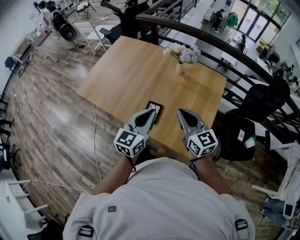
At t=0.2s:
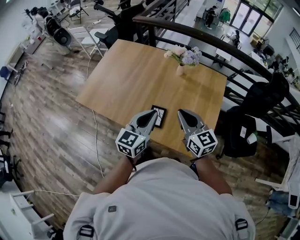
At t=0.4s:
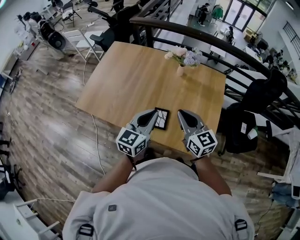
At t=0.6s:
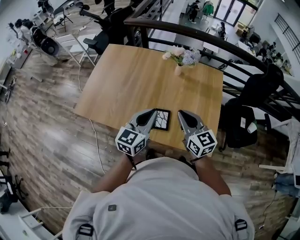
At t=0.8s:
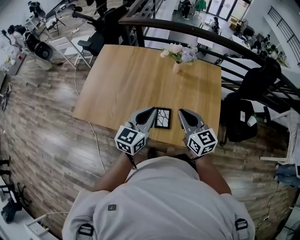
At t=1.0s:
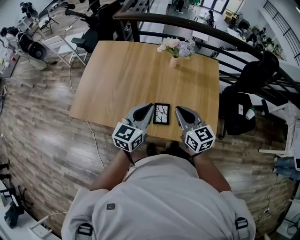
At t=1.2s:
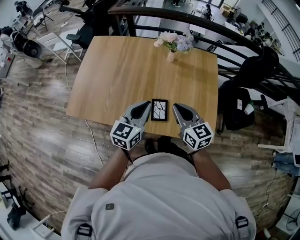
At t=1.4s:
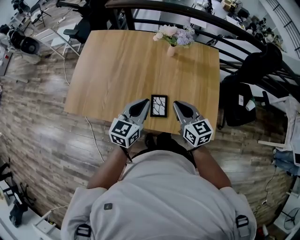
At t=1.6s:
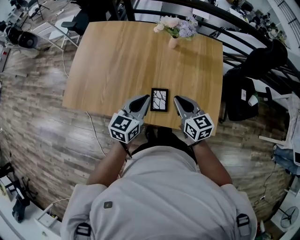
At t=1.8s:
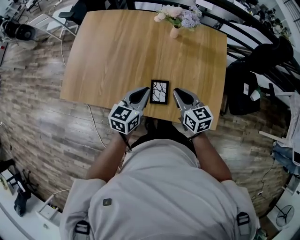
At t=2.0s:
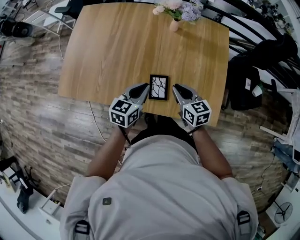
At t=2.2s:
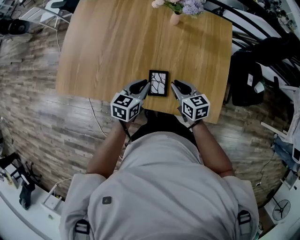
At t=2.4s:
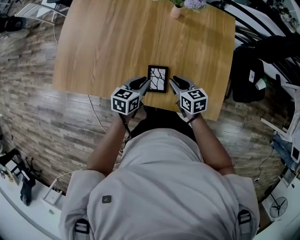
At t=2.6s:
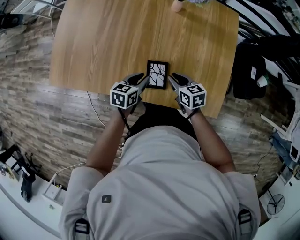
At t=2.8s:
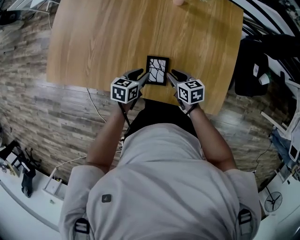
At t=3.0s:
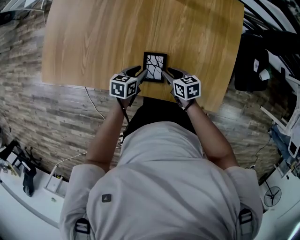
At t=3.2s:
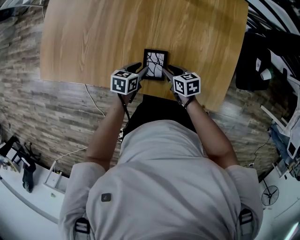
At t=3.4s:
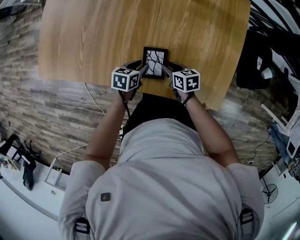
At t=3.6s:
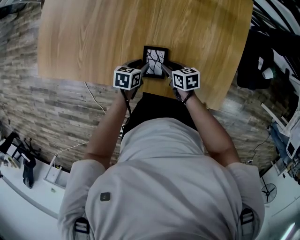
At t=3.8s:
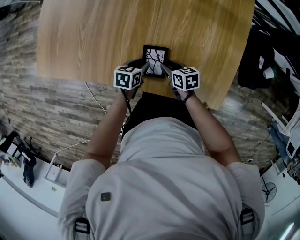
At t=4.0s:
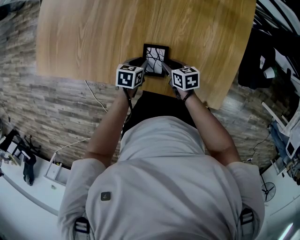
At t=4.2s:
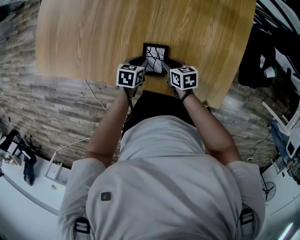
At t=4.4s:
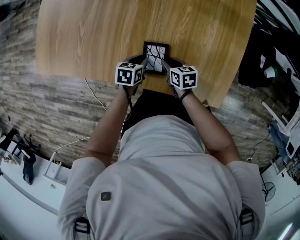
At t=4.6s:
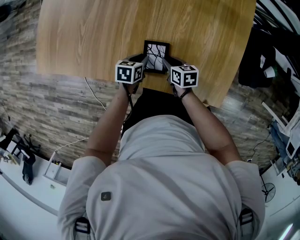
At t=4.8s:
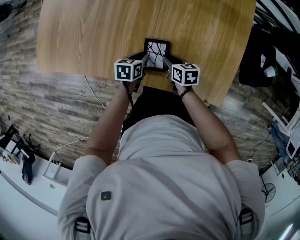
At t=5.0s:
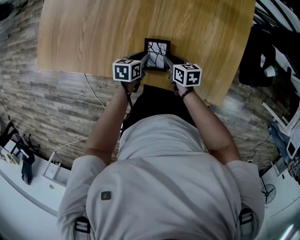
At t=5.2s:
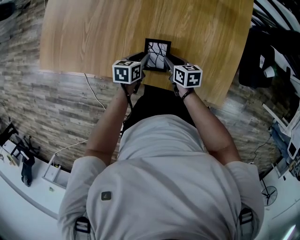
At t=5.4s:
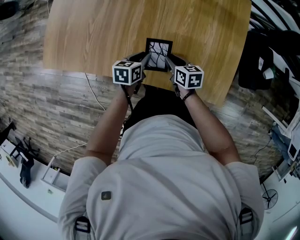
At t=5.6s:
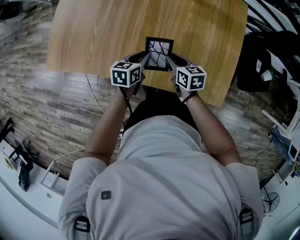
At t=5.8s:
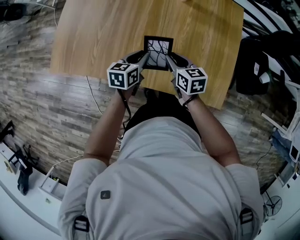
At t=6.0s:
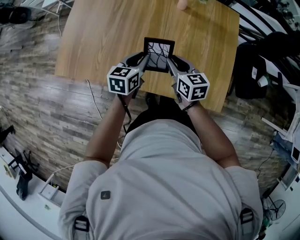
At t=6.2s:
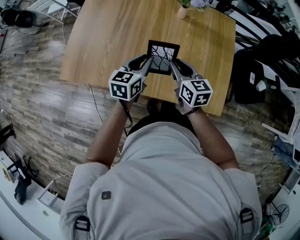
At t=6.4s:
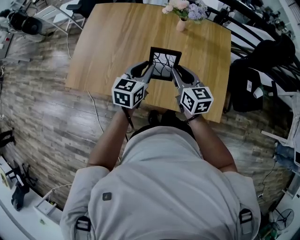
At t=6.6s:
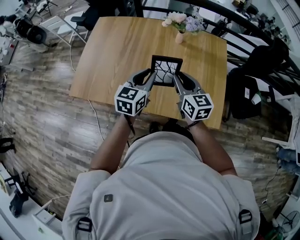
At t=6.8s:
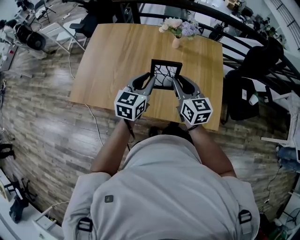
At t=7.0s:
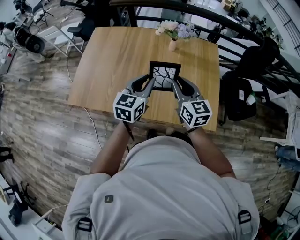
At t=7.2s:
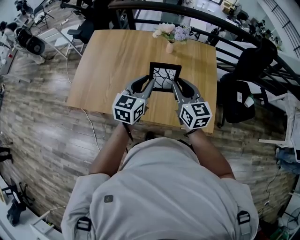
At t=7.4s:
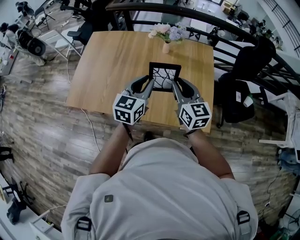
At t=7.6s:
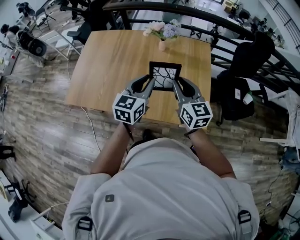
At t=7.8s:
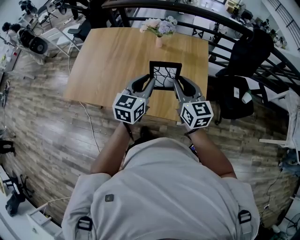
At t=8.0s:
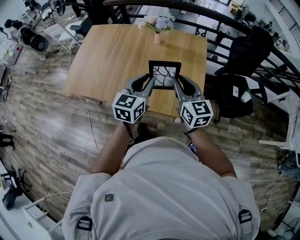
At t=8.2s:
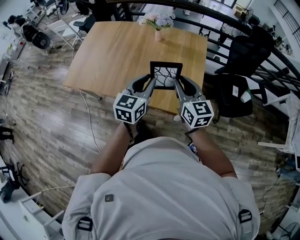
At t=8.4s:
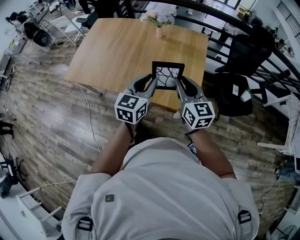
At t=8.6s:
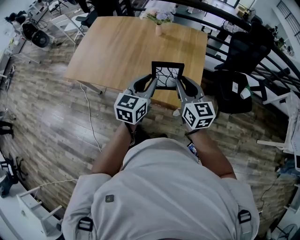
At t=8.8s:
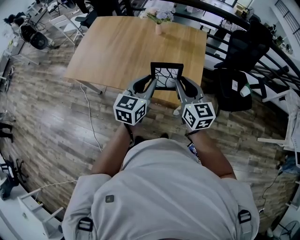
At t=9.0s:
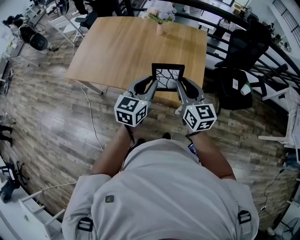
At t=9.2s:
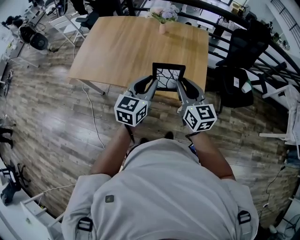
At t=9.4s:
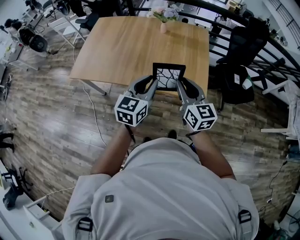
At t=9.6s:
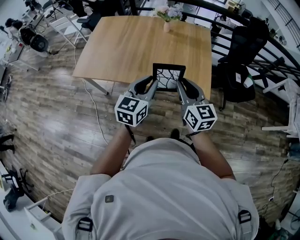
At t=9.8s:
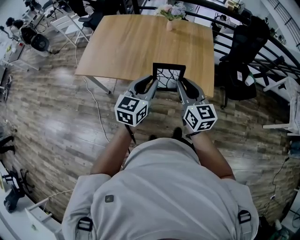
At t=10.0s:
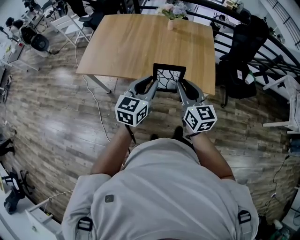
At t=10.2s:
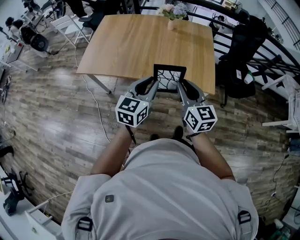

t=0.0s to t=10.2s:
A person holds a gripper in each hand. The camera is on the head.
t=0.0s to t=1.4s: The right gripper is displaced to the left and downward by about 15 cm, and turns by some 20 degrees, while the left gripper shifts some 15 cm to the left, forward and downward.
t=1.4s to t=3.0s: Both grippers move downward, roughly 30 cm. The left gripper turns by approximately 40 degrees, and opens up. The right gripper turns by some 40 degrees, and opens up.
t=3.0s to t=4.4s: The grippers both shift downward by approximately 5 cm.
t=4.4s to t=5.8s: Both grippers travel together upward, about 15 cm. The left gripper swivels some 20 degrees. Meanwhile the right gripper turns by some 20 degrees.
t=5.8s to t=7.2s: The grippers both shift upward by about 25 cm. The right gripper rotates about 30 degrees; the left gripper turns by some 30 degrees.
t=7.2s to t=8.8s: The grippers both shift backward and to the right by about 25 cm.
t=8.8s to t=10.2s: Both grippers move to the left and backward, approximately 20 cm.

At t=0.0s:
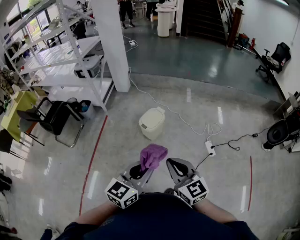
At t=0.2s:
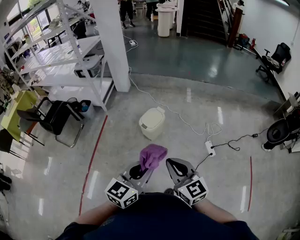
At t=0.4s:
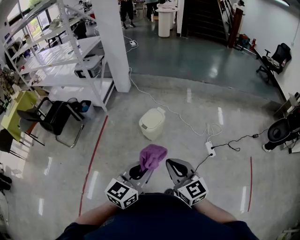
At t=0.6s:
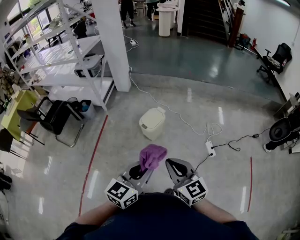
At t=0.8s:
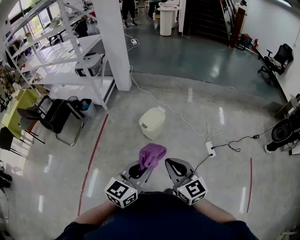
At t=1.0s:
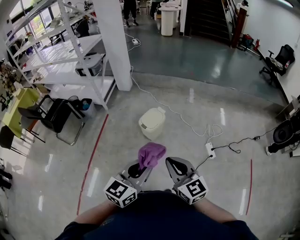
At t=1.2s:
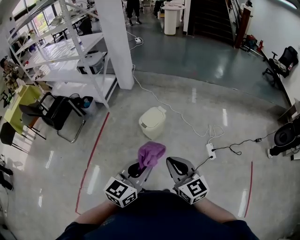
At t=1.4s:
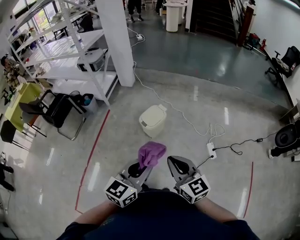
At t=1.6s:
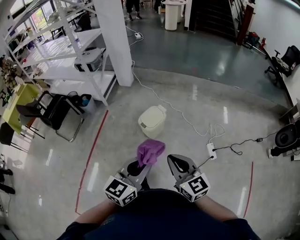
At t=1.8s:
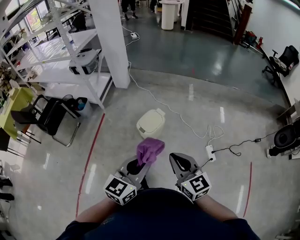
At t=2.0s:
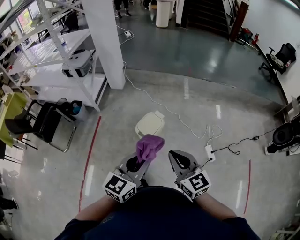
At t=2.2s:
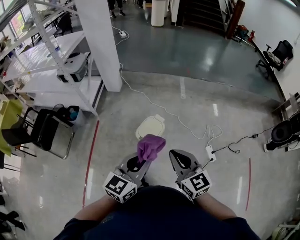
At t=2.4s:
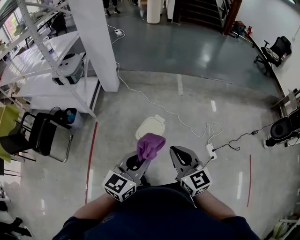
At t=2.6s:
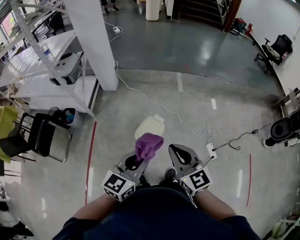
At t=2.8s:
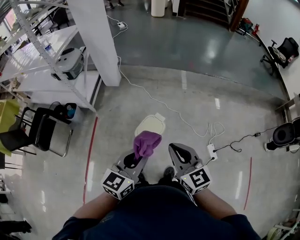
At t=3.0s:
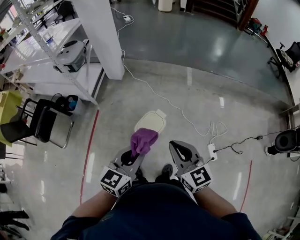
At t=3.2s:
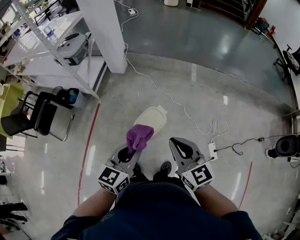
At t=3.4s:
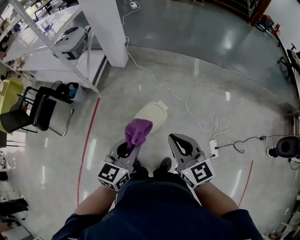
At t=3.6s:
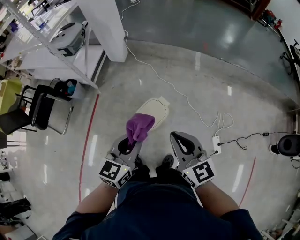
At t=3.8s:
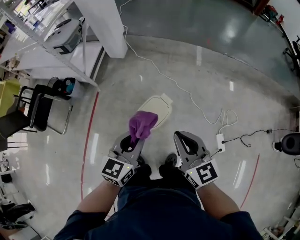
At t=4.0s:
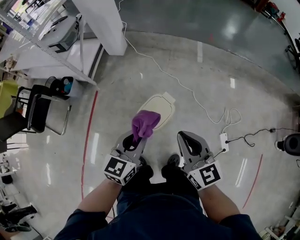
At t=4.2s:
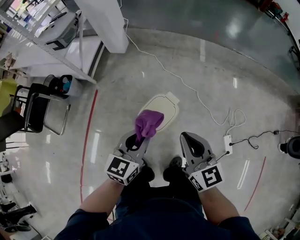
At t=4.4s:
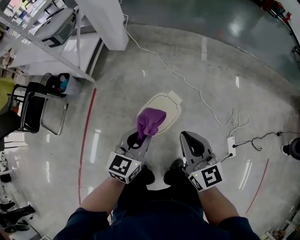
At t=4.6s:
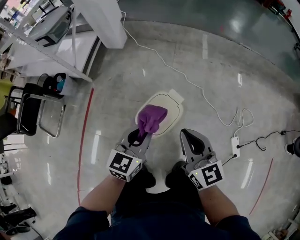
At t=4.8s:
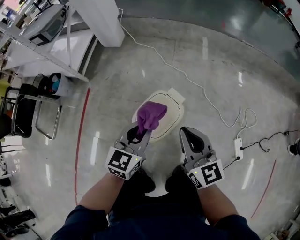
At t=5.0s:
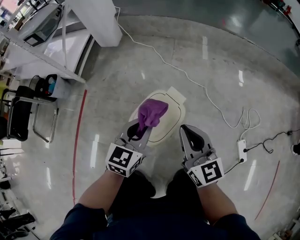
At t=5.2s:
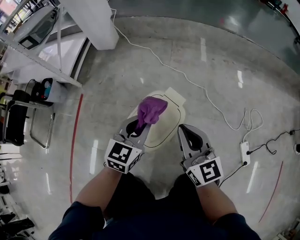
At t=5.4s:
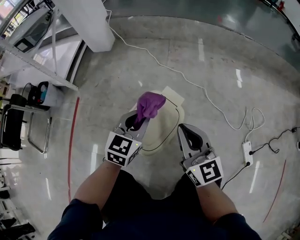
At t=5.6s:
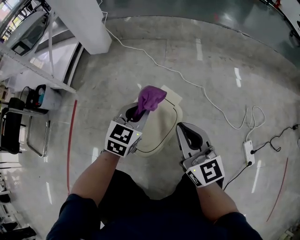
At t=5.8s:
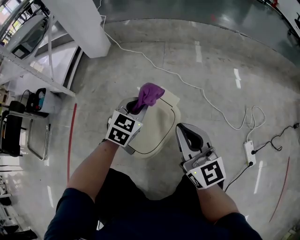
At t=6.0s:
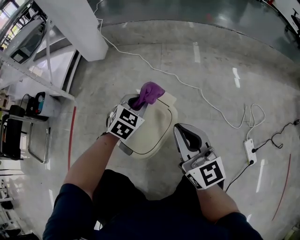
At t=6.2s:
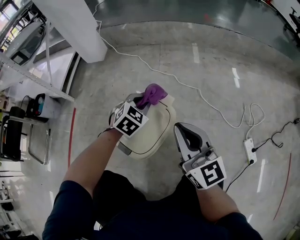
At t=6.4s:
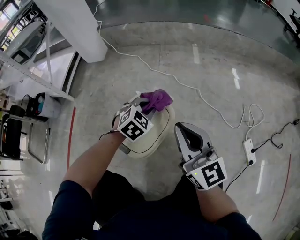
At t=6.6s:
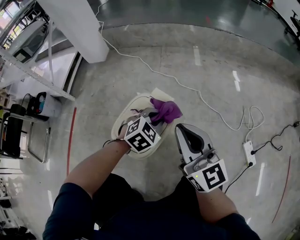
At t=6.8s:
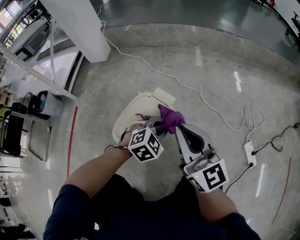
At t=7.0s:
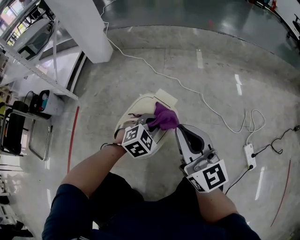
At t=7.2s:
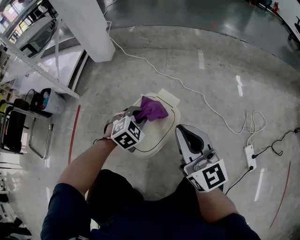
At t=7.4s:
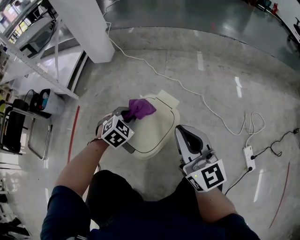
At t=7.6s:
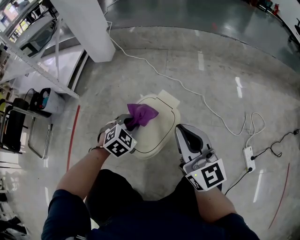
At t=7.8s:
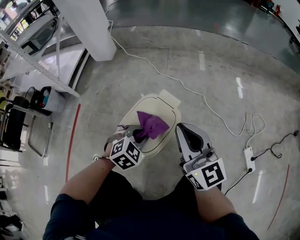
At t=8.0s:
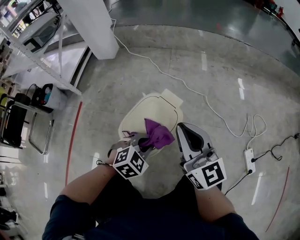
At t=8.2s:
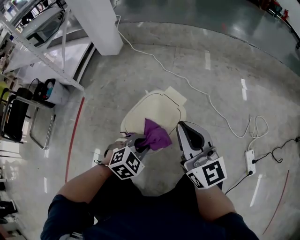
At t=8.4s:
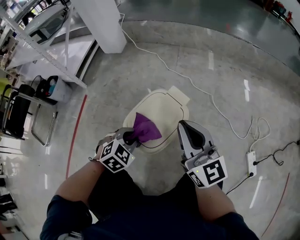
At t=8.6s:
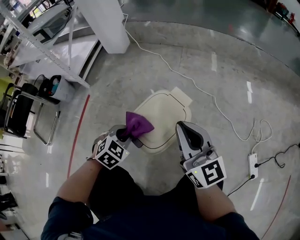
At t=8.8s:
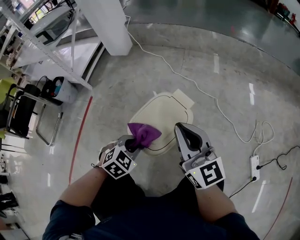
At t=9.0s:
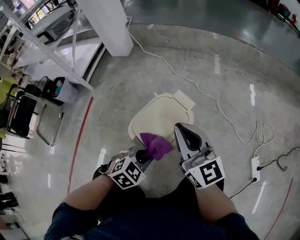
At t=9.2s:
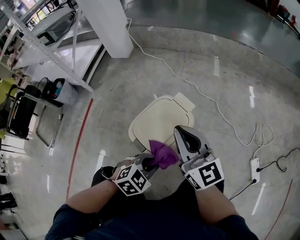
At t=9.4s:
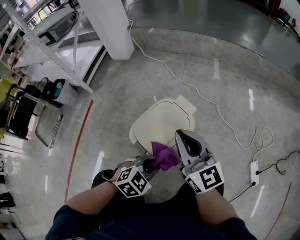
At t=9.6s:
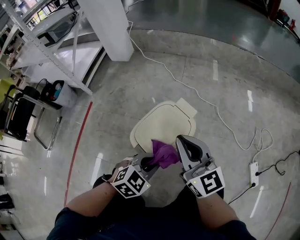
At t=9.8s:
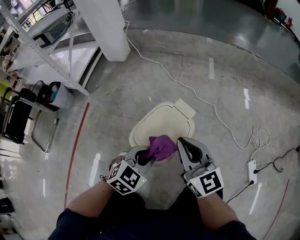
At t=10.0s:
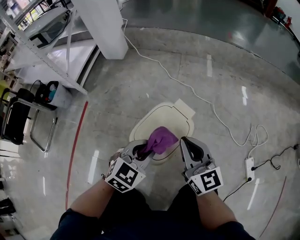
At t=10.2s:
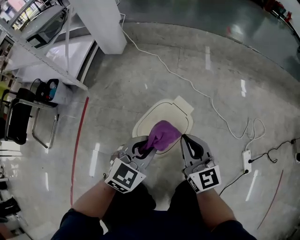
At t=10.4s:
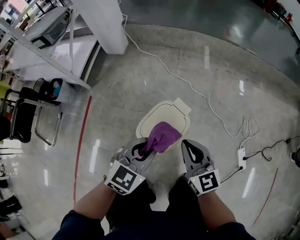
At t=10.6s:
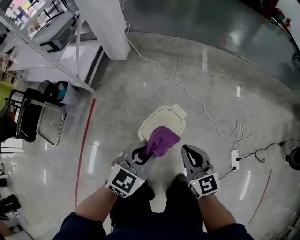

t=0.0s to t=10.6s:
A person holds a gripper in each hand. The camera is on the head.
t=0.0s to t=1.6s: Both grippers move forward, roughly 10 cm.
t=1.6s to t=3.0s: The grippers both shift forward by roughly 30 cm.
t=3.0s to t=4.6s: The grippers both shift downward and forward by roughly 35 cm.
t=4.6s to t=6.0s: The left gripper shifts some 30 cm downward and forward, and turns by some 40 degrees. The right gripper heads downward, covering roughly 20 cm.
t=6.0s to t=7.6s: The left gripper travels backward by approximately 10 cm, and moves approximately 10 cm to the right and comes back.
t=7.6s to t=9.0s: The left gripper travels backward by approximately 15 cm.
t=9.0s to t=10.6s: The right gripper goes about 15 cm upward, and swivels about 20 degrees; the left gripper heads upward, covering approximately 35 cm, and swivels some 30 degrees.

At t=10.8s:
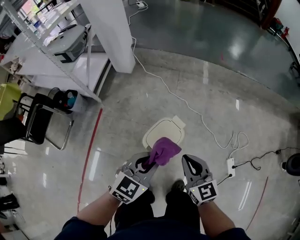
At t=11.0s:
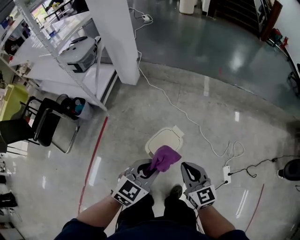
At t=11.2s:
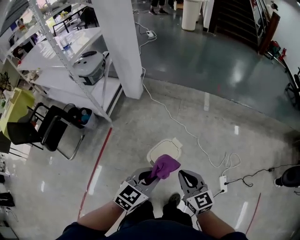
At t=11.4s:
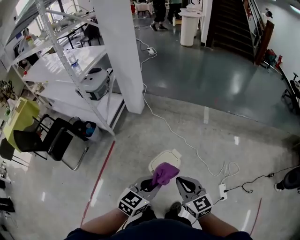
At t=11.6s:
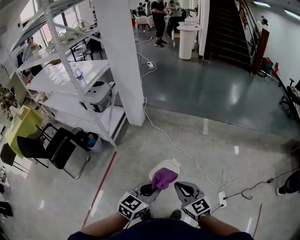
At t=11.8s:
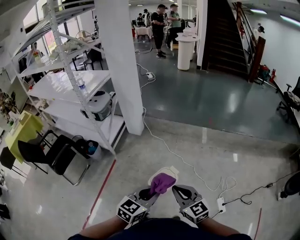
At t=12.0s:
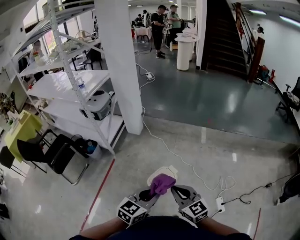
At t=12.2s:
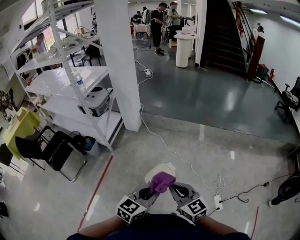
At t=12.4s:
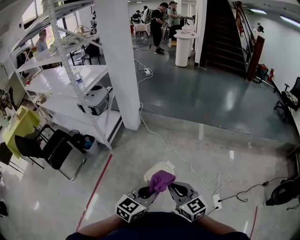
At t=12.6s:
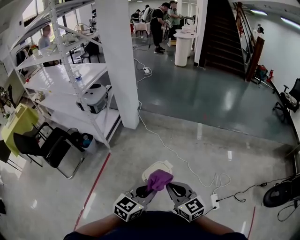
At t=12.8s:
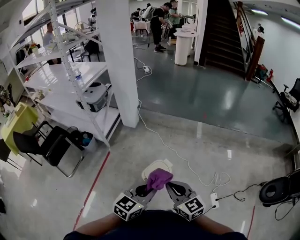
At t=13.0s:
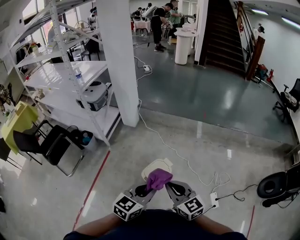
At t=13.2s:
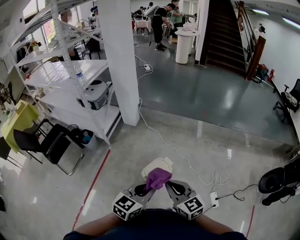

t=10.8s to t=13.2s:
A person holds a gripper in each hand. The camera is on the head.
t=10.8s to t=12.0s: The right gripper travels upward by roughly 30 cm. The left gripper is displaced upward and backward by some 30 cm.
t=12.0s to t=13.2s: There are only small adjustments of the grippers.
